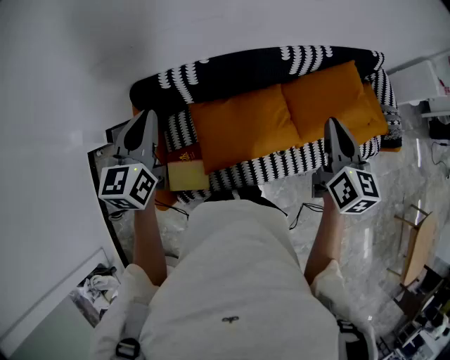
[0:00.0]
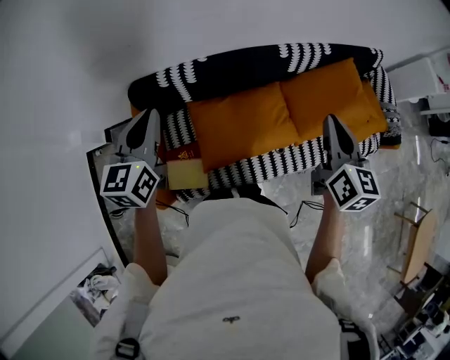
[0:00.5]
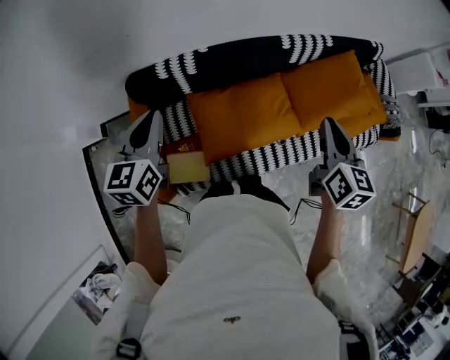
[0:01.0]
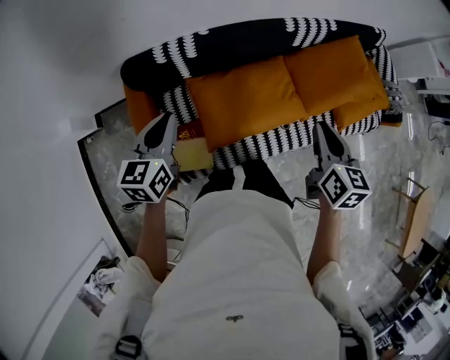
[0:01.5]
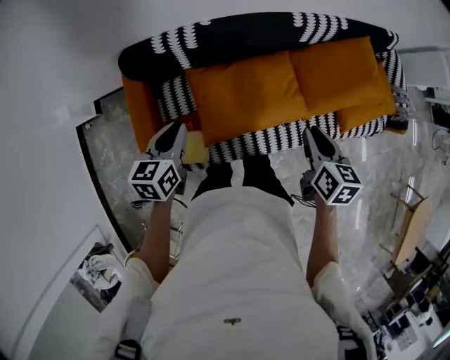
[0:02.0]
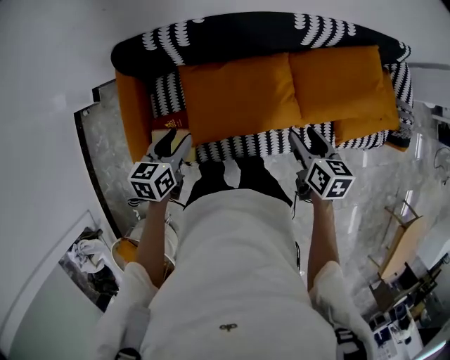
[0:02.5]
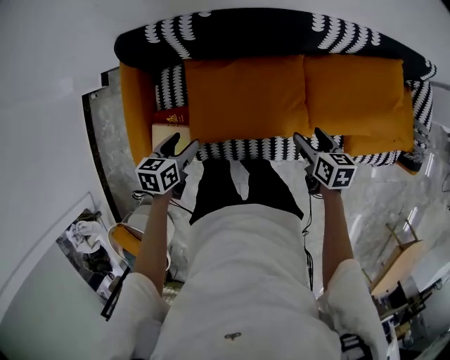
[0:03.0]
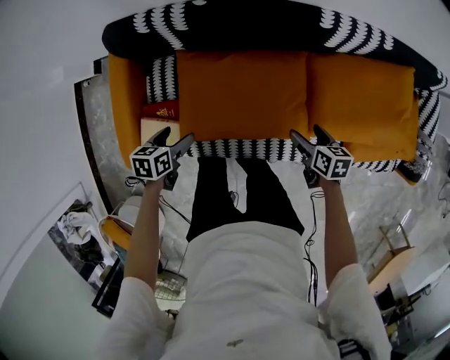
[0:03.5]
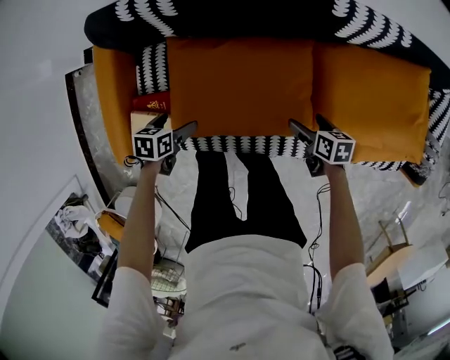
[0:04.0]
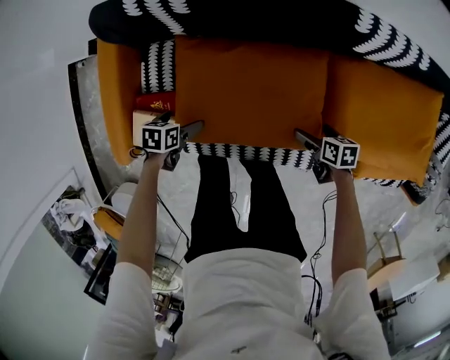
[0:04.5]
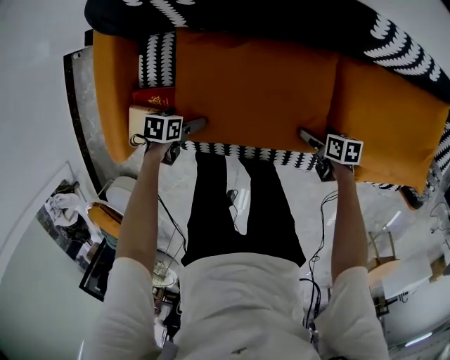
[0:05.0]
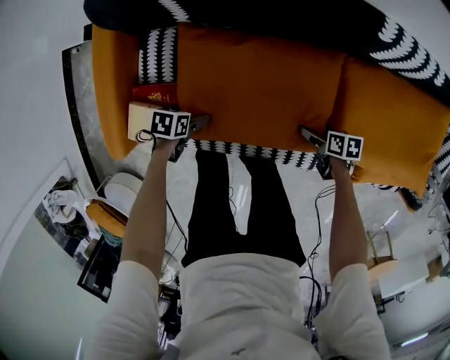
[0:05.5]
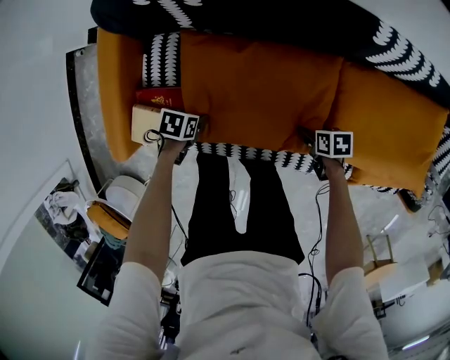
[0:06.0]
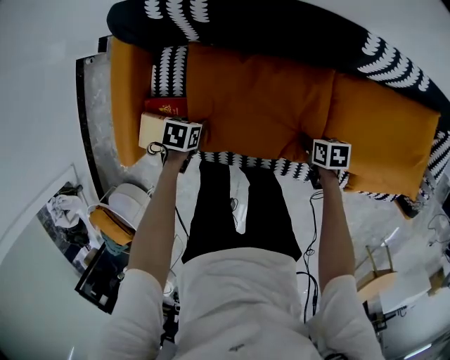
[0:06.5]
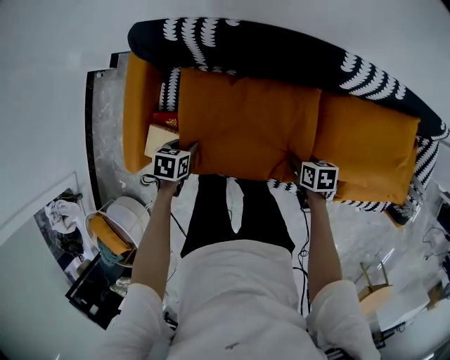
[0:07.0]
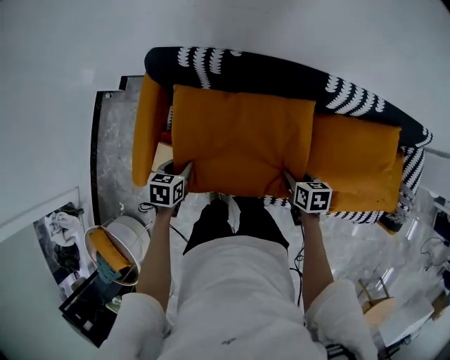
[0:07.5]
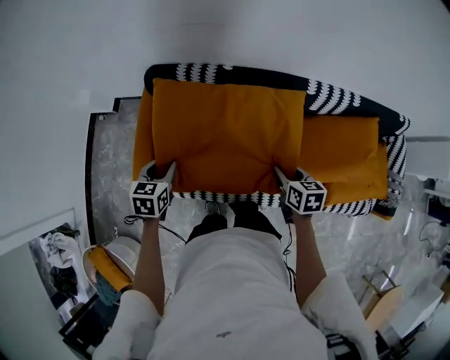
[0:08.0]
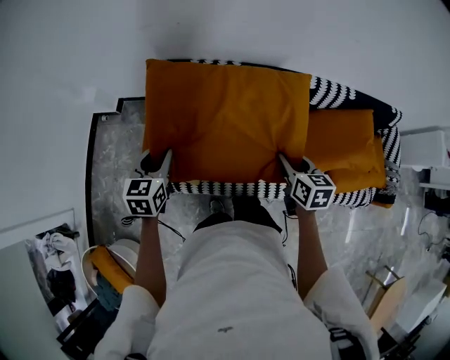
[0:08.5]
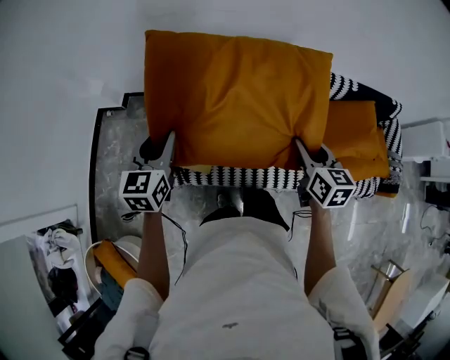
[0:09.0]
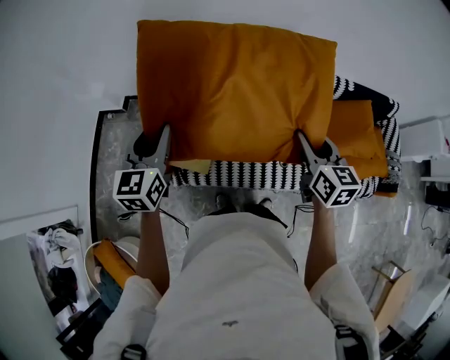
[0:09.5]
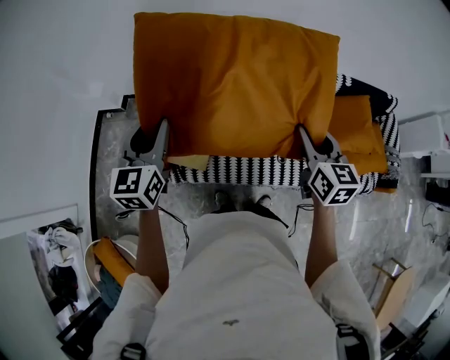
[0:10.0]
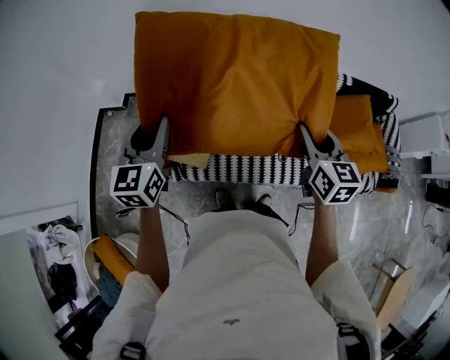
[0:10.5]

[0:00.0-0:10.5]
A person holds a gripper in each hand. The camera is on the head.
0:00.0 to 0:02.0: The grippers both shift downward by approximately 20 cm. The right gripper swivels some 20 degrees. Meanwhile the left gripper changes its angle by some 30 degrees.
0:02.0 to 0:04.0: Both grippers move downward, approximately 35 cm. The left gripper tilts its fingers about 30 degrees downward, and opens its fingers, while the right gripper changes its angle by about 40 degrees, and opens its fingers.
0:04.0 to 0:06.5: The right gripper closes up; the left gripper goes downward and returns, roughly 10 cm each way, and closes up.
0:06.5 to 0:08.5: Both grippers travel together upward, some 40 cm. The left gripper tilts its fingers some 40 degrees upward, while the right gripper rotates roughly 40 degrees.
0:08.5 to 0:10.5: Both grippers travel together upward, approximately 15 cm. The right gripper swivels roughly 20 degrees. The left gripper swivels about 20 degrees.

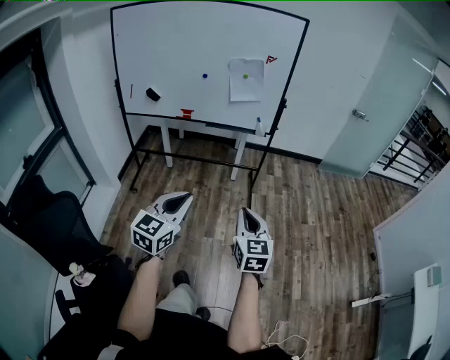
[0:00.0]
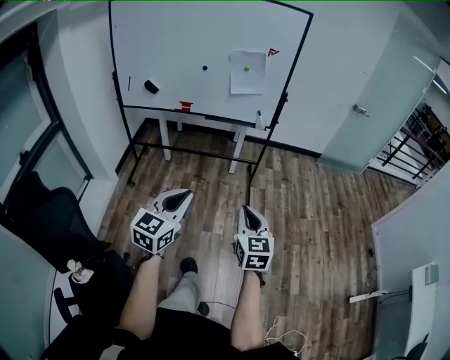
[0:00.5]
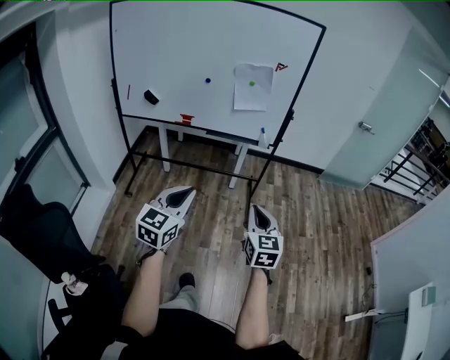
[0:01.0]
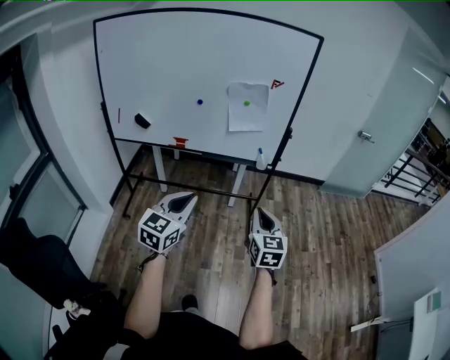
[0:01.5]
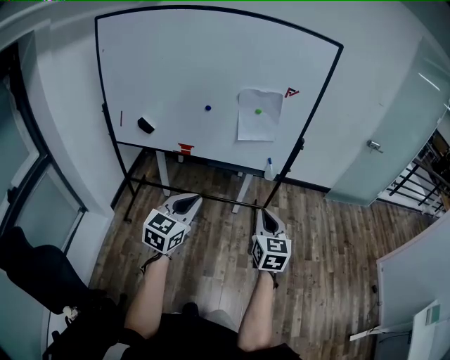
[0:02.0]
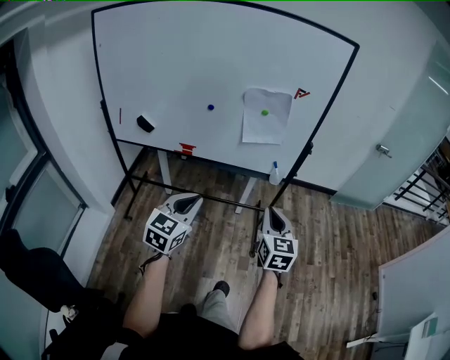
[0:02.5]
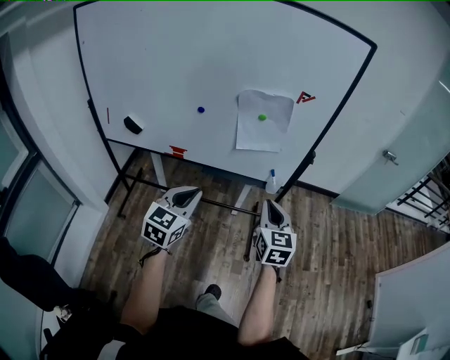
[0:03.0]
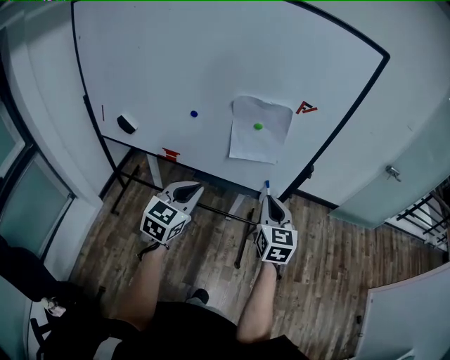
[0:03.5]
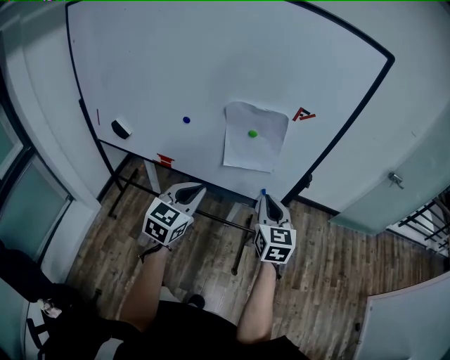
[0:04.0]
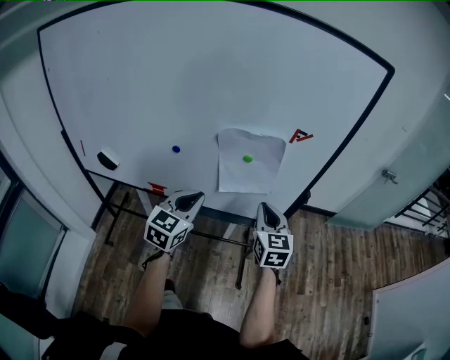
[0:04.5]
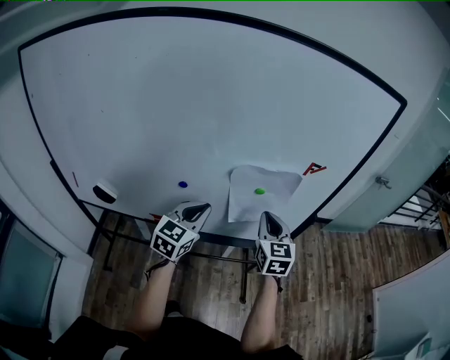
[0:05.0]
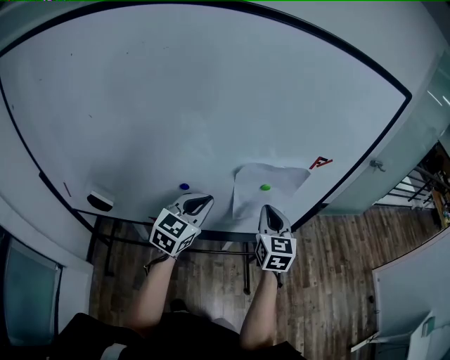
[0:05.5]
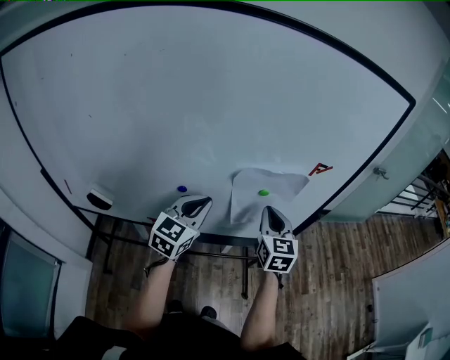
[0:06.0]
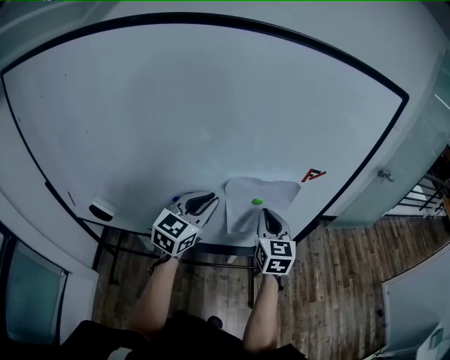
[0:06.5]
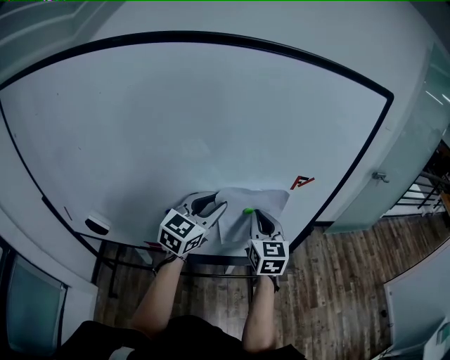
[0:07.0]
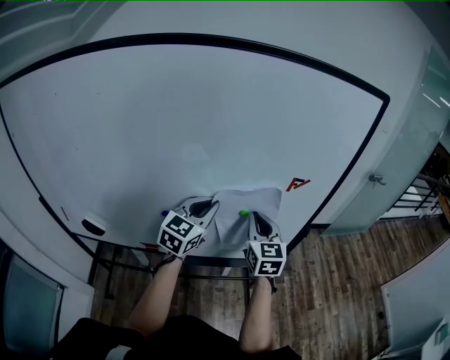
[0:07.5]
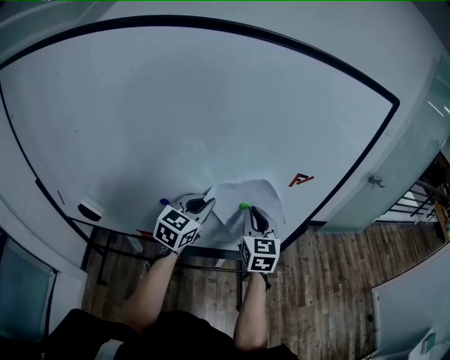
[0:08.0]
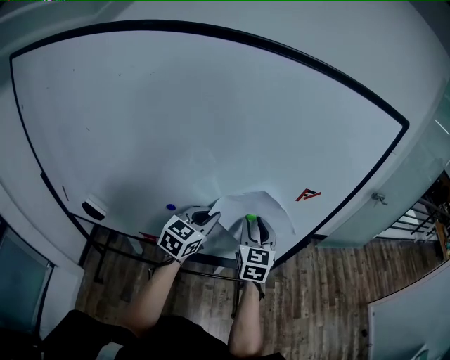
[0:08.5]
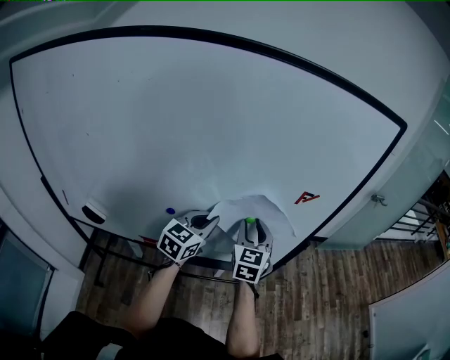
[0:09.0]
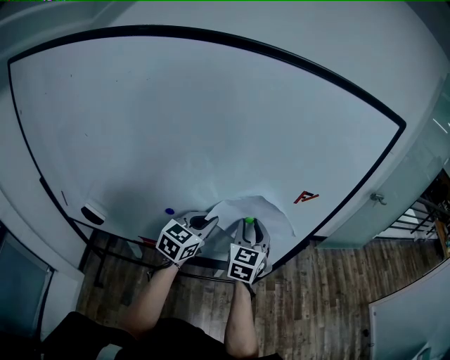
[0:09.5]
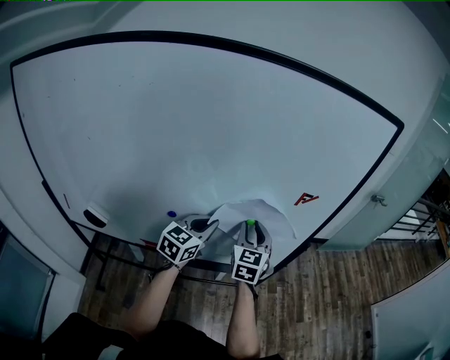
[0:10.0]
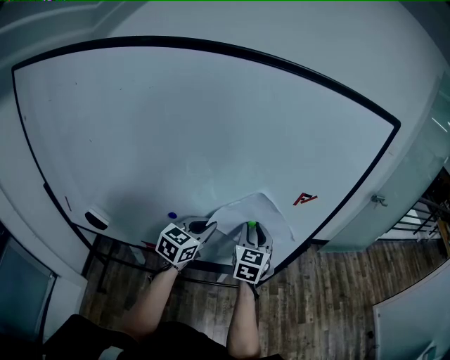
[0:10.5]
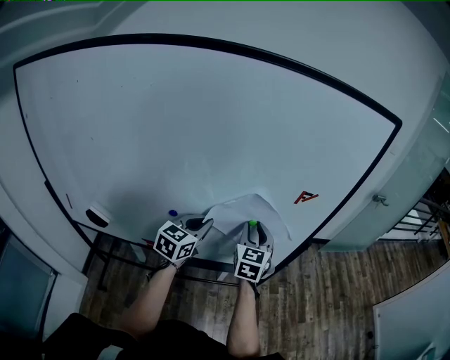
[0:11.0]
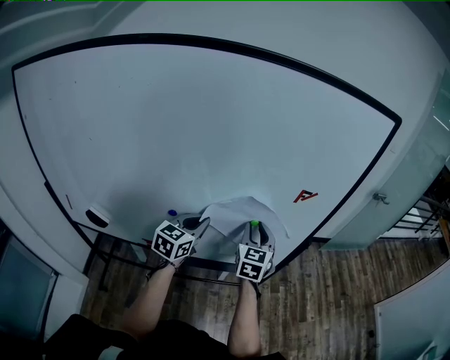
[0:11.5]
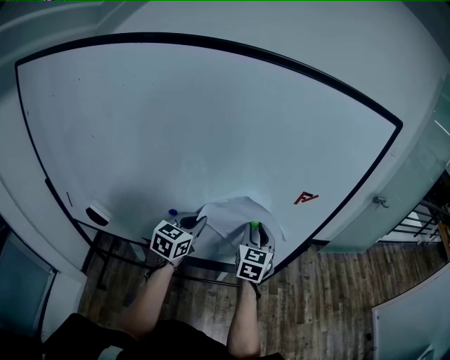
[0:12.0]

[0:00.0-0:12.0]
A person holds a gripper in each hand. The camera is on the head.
0:00.0 to 0:02.0: Both grippers travel together forward, some 35 cm.
0:02.0 to 0:04.0: The grippers both shift forward by about 30 cm.
0:04.0 to 0:06.0: Both grippers travel together forward and to the left, some 20 cm.
0:06.0 to 0:08.0: The left gripper heads forward, covering approximately 5 cm, and opens, then closes again.
0:08.0 to 0:10.0: The right gripper opens up.
0:10.0 to 0:12.0: The grippers make only small movements.

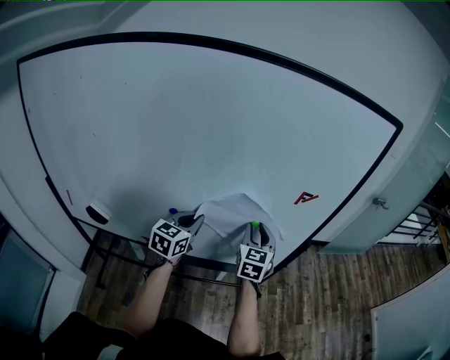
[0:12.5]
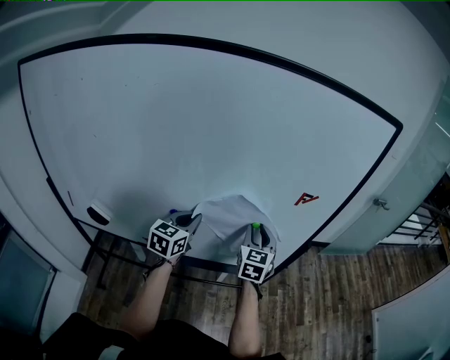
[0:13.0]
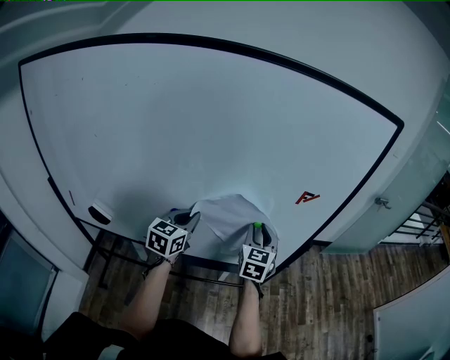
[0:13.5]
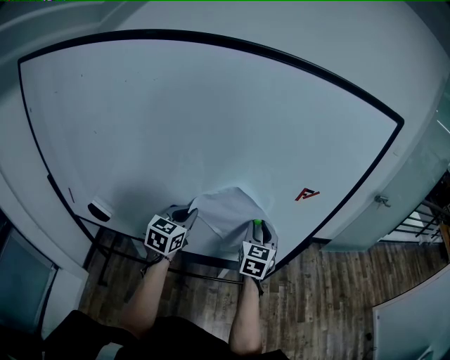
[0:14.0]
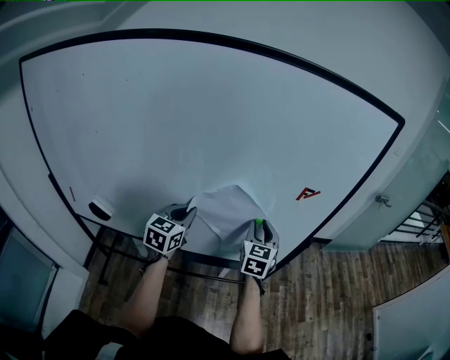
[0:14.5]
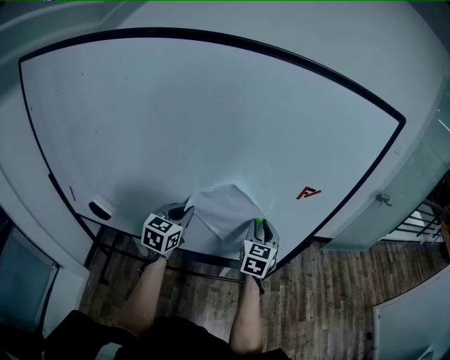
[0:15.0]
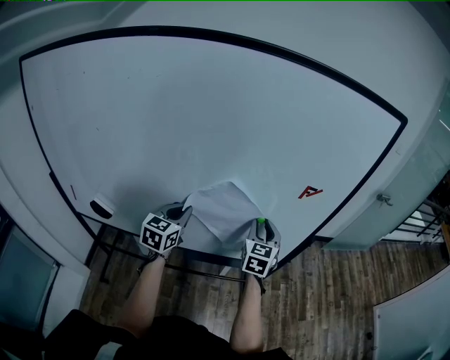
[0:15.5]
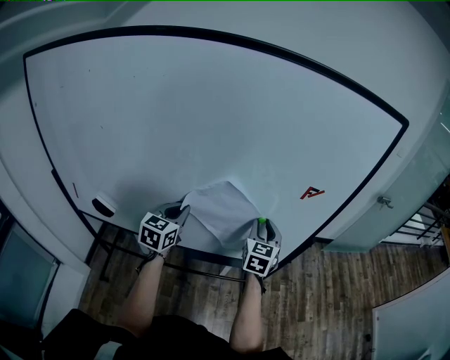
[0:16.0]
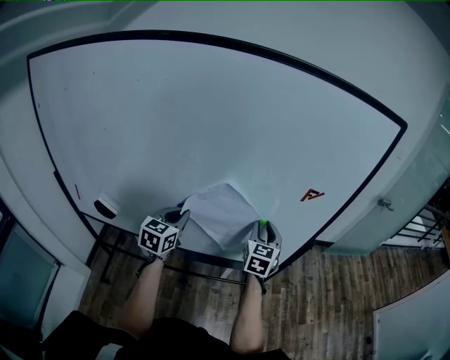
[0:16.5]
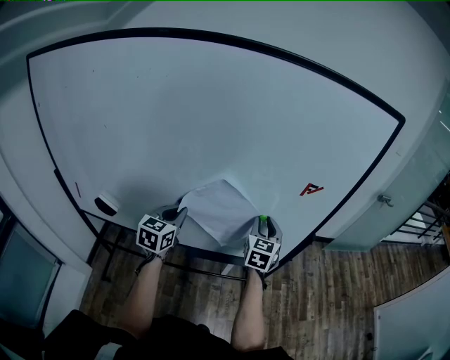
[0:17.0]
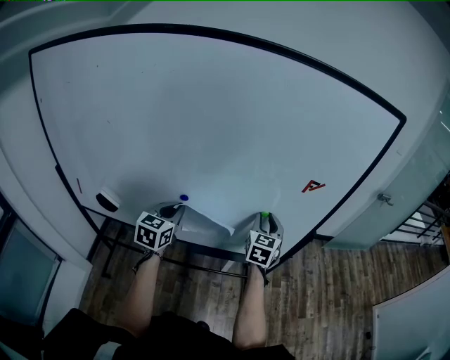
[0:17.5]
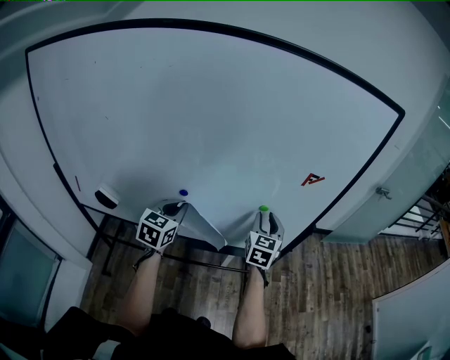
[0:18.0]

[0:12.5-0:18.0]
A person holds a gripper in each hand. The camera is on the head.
0:12.5 to 0:14.5: The grippers make only small movements.
0:14.5 to 0:16.0: There are only small adjustments of the grippers.
0:16.0 to 0:18.0: The grippers make only small movements.
